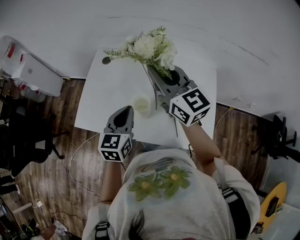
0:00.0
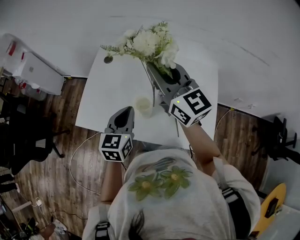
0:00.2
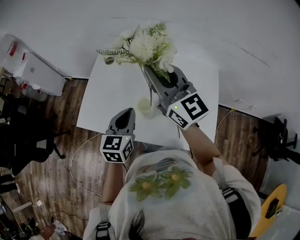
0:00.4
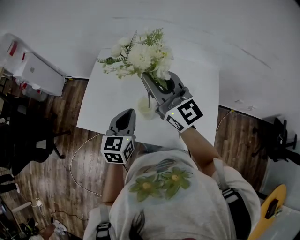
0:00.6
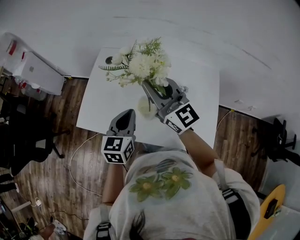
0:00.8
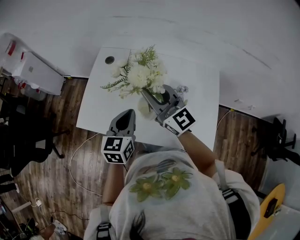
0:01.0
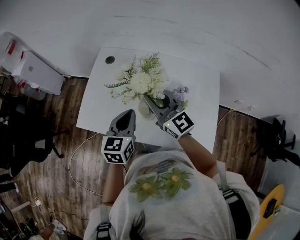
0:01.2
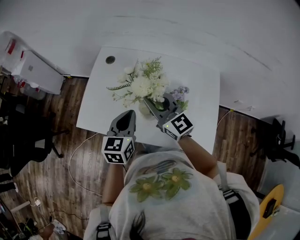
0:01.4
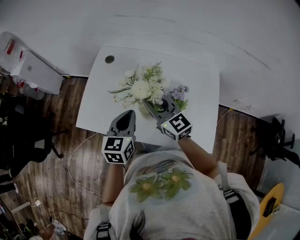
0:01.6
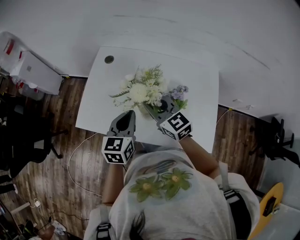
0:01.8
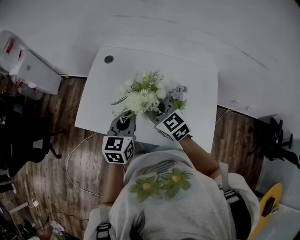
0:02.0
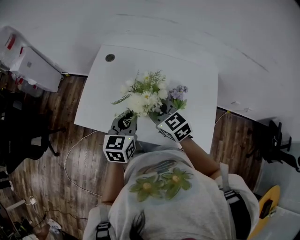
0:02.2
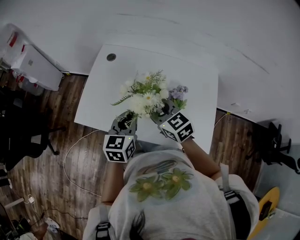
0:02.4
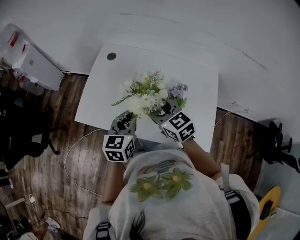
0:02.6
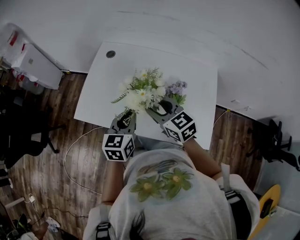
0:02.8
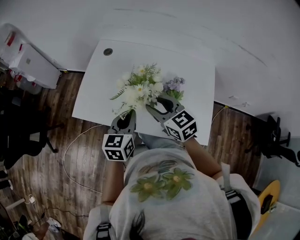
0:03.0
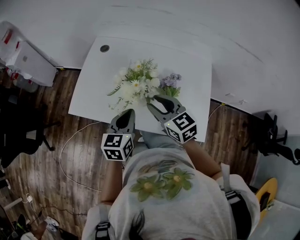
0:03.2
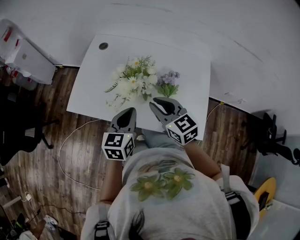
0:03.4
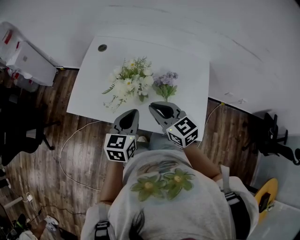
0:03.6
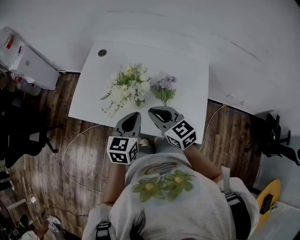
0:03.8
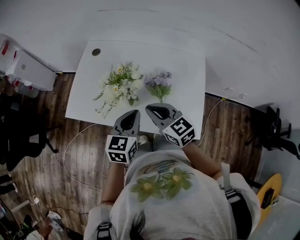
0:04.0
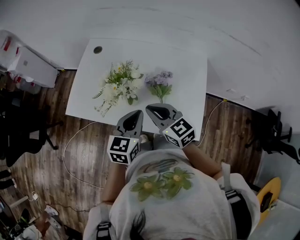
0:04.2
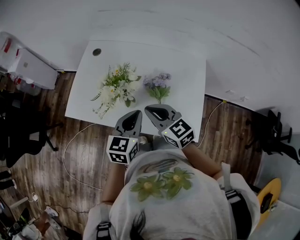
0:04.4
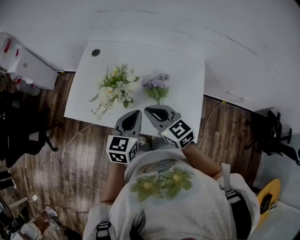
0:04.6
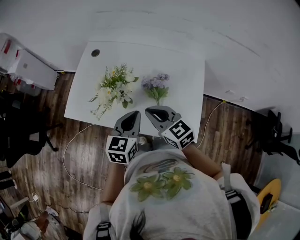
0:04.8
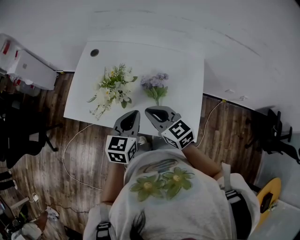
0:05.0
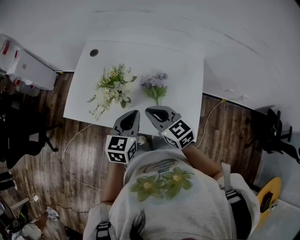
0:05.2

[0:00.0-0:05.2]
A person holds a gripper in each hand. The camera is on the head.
0:00.0 to 0:01.8: The right gripper goes about 15 cm downward and to the left.
0:01.8 to 0:03.4: Both grippers move backward, roughly 10 cm.
0:03.4 to 0:05.2: The right gripper shifts some 5 cm to the right. The left gripper heads to the right, covering roughly 10 cm.

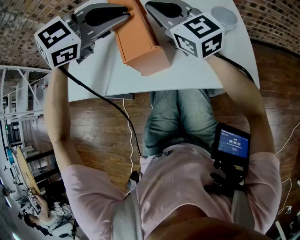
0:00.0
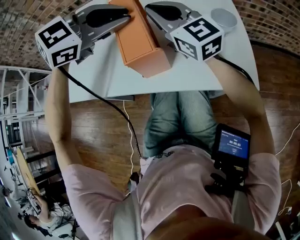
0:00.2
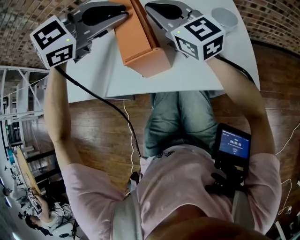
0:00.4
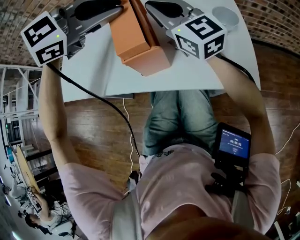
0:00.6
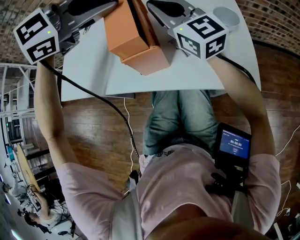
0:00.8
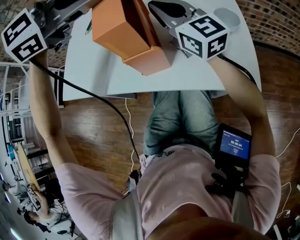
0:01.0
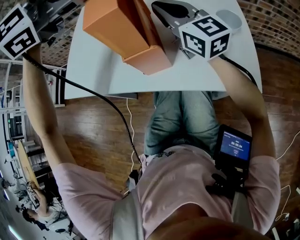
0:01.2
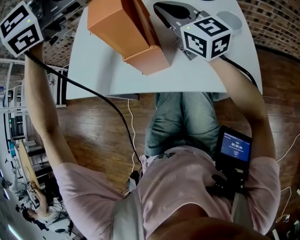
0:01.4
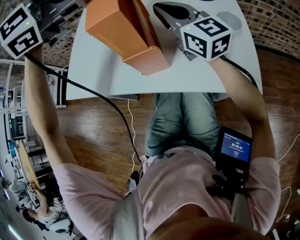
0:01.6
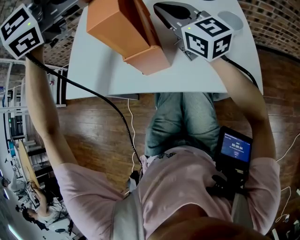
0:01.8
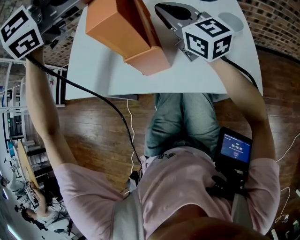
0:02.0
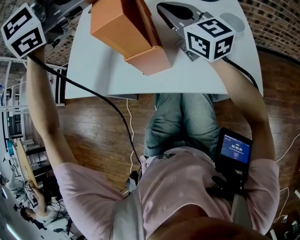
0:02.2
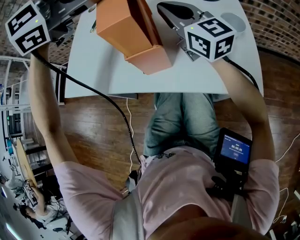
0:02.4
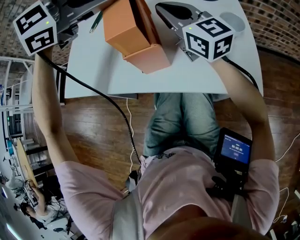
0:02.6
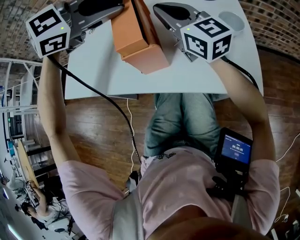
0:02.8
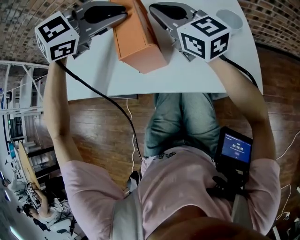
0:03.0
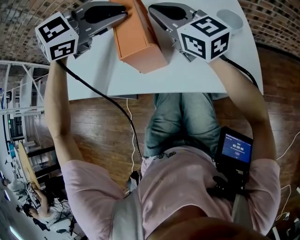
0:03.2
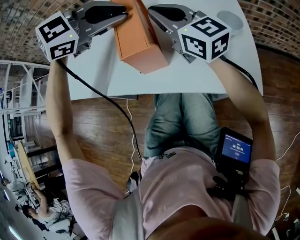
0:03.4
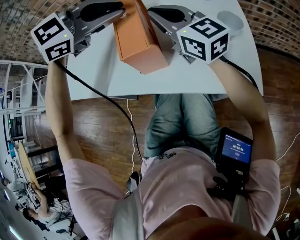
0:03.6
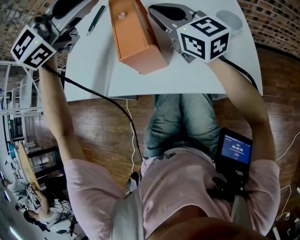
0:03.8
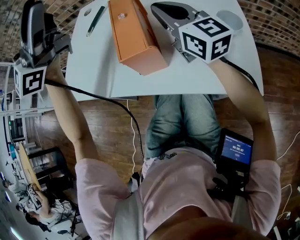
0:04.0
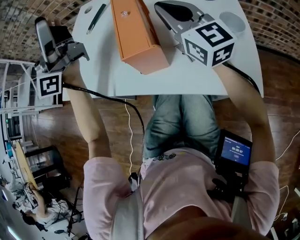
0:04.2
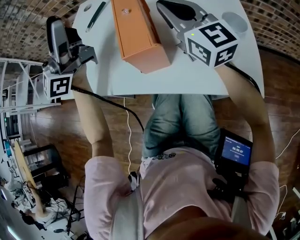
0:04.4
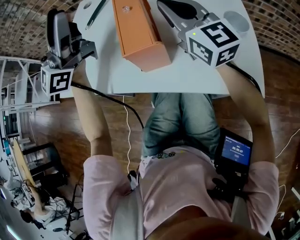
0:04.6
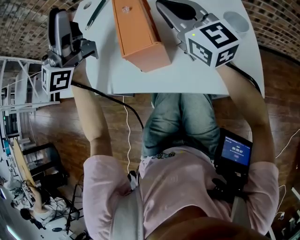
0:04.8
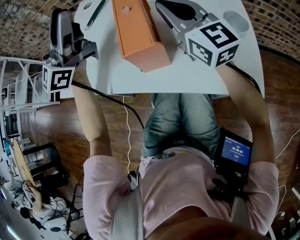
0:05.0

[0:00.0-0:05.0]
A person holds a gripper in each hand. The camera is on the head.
0:00.0 to 0:01.6: The left gripper is displaced upward by some 10 cm.
0:01.6 to 0:03.4: The left gripper moves downward, some 10 cm.
0:03.4 to 0:05.0: The left gripper is displaced to the left and upward by about 15 cm, tilts its fingers some 70 degrees upward, and opens.

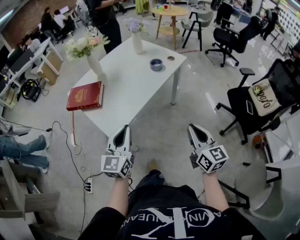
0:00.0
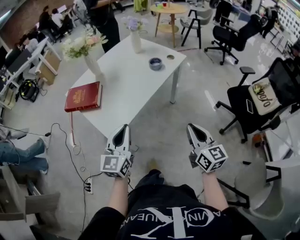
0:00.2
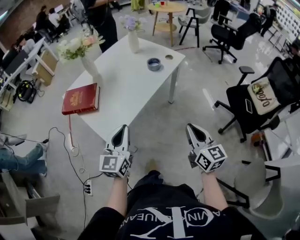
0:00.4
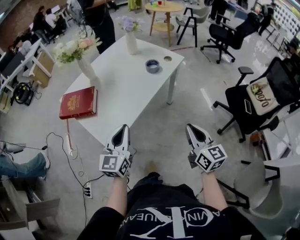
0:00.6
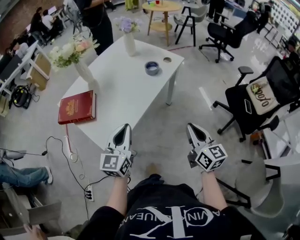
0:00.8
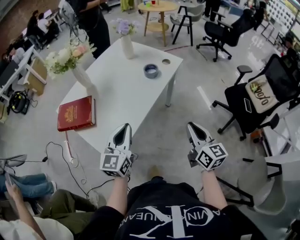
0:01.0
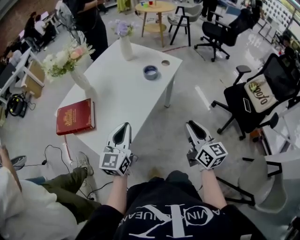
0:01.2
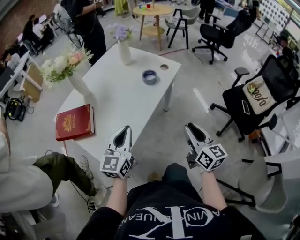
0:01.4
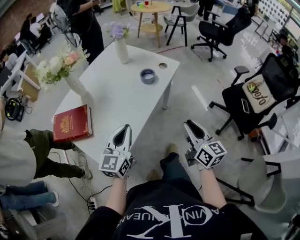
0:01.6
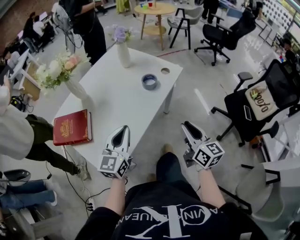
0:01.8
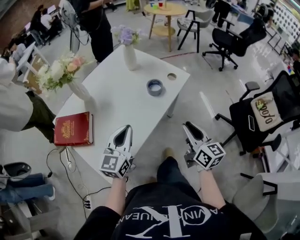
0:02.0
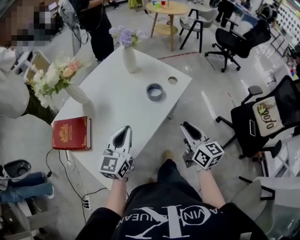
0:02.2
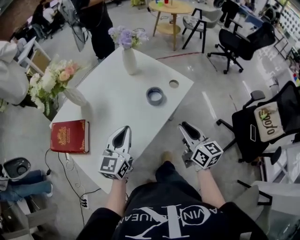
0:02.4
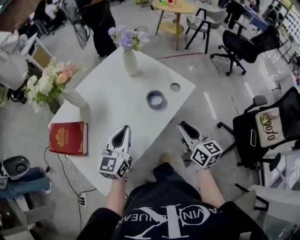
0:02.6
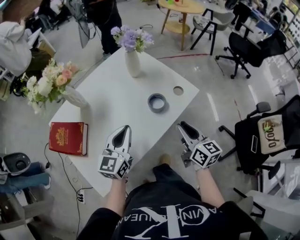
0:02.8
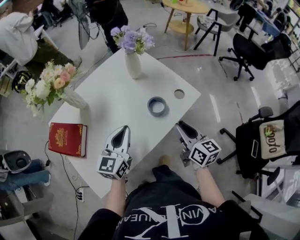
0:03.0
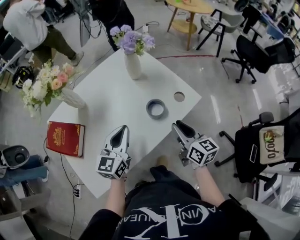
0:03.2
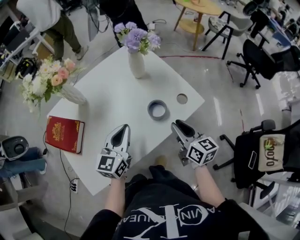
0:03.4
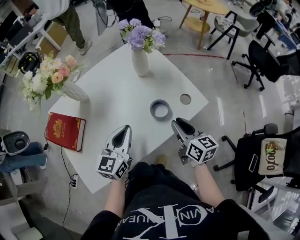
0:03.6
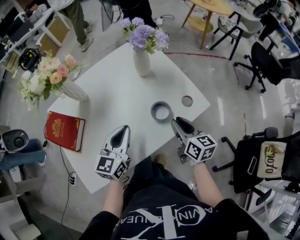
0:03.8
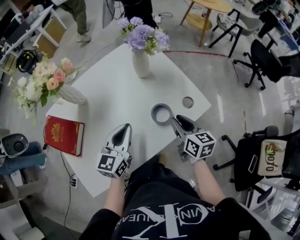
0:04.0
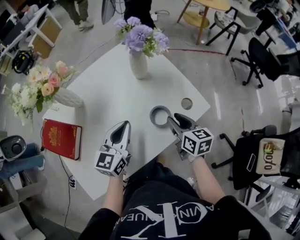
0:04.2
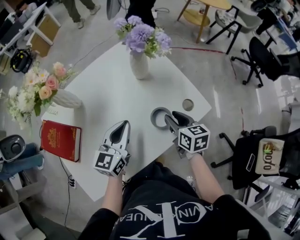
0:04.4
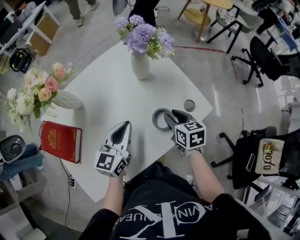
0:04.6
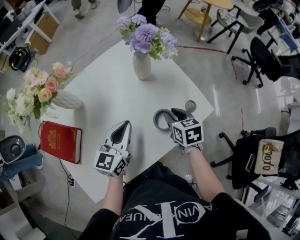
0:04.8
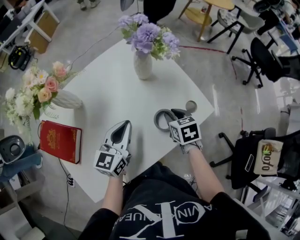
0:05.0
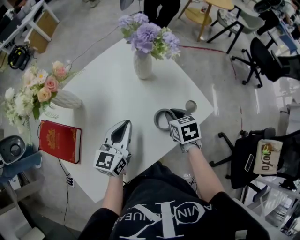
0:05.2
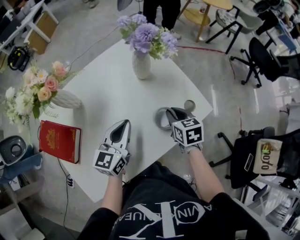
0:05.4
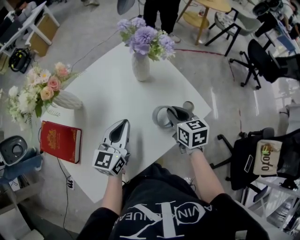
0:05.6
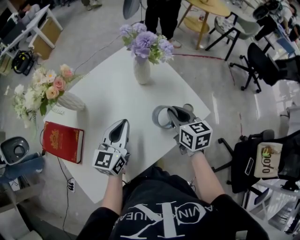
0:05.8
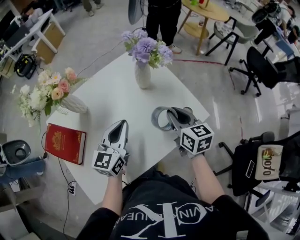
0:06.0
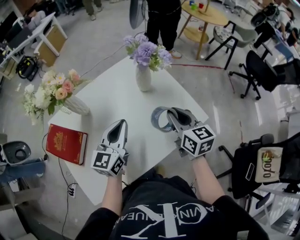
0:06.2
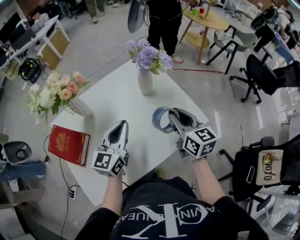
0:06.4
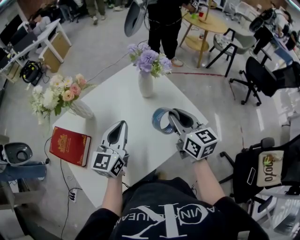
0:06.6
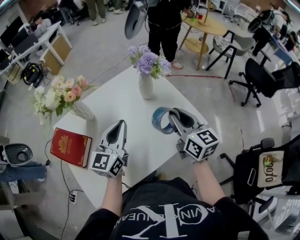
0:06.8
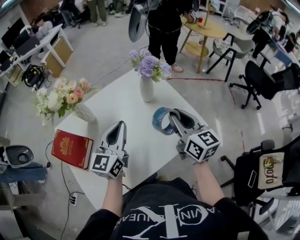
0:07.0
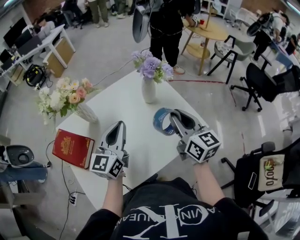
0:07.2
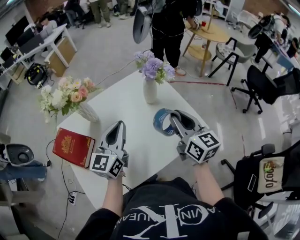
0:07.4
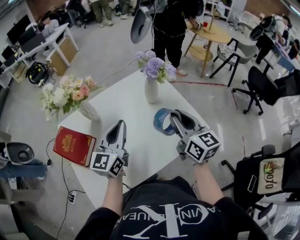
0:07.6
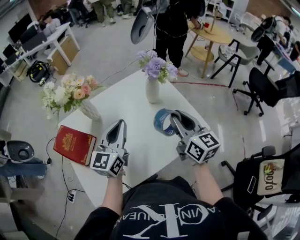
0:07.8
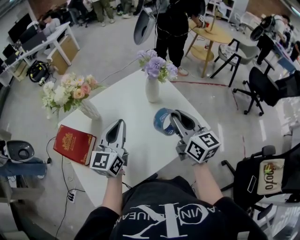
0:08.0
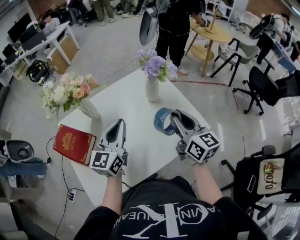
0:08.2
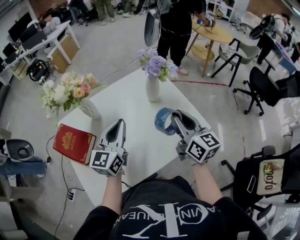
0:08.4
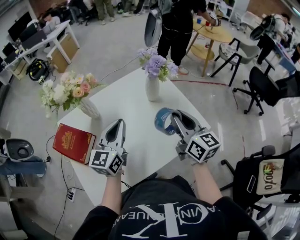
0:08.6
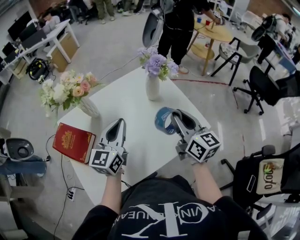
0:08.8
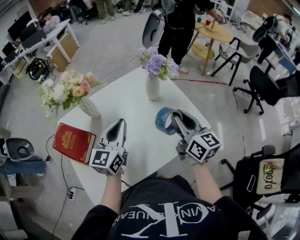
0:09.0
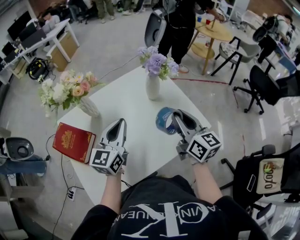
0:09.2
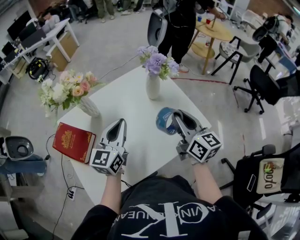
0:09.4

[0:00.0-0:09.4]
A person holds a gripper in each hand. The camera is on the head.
0:00.0 to 0:01.6: Both grippers travel together forward, approximately 15 cm. The right gripper opens its fingers.
0:01.6 to 0:03.2: The grippers both shift forward by about 25 cm. The right gripper swivels some 30 degrees.
0:03.2 to 0:04.8: The left gripper is displaced forward by some 10 cm. The right gripper shifts about 15 cm forward and downward, and angles its fingers downward, by approximately 30 degrees.
0:04.8 to 0:06.2: The left gripper moves upward, roughly 5 cm, while the right gripper is displaced upward by some 15 cm, and turns by some 30 degrees.
0:06.2 to 0:07.8: Both grippers move upward, some 5 cm.
0:07.8 to 0:09.4: The grippers make only small movements.

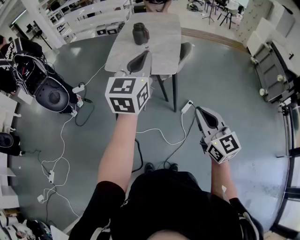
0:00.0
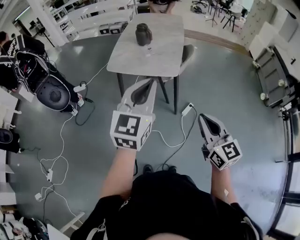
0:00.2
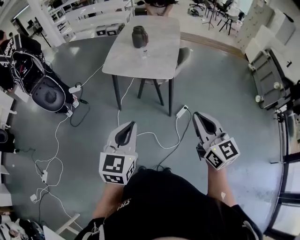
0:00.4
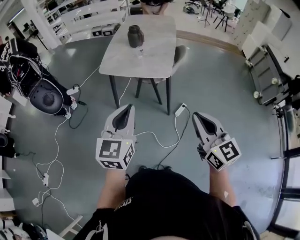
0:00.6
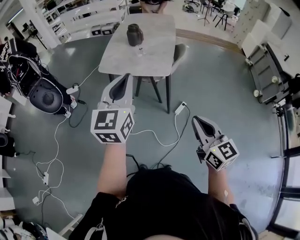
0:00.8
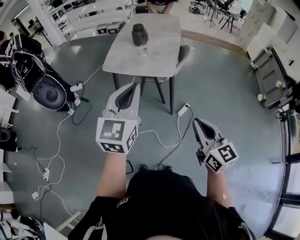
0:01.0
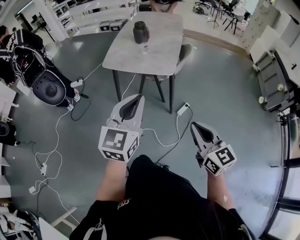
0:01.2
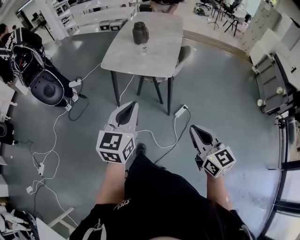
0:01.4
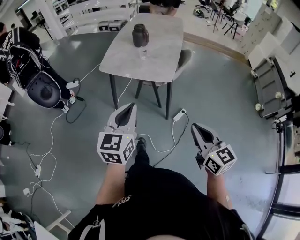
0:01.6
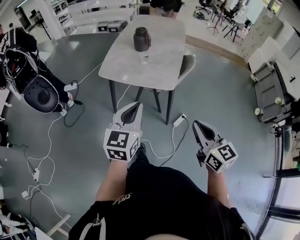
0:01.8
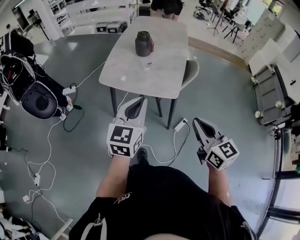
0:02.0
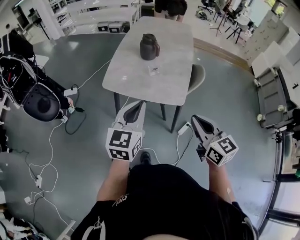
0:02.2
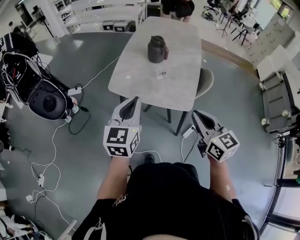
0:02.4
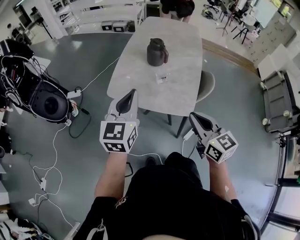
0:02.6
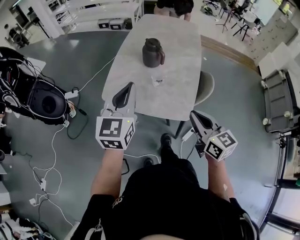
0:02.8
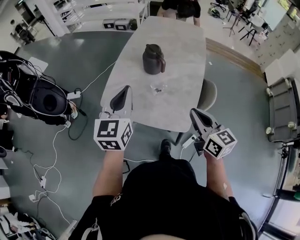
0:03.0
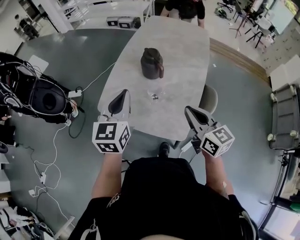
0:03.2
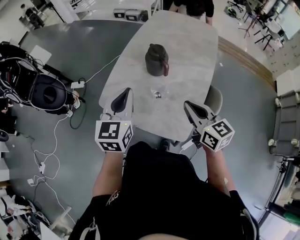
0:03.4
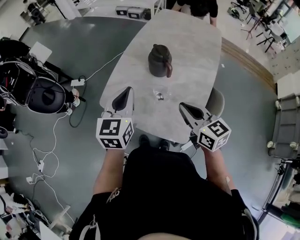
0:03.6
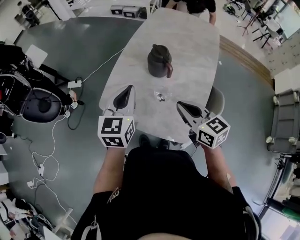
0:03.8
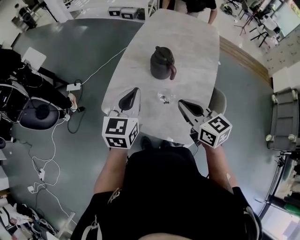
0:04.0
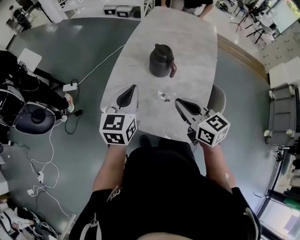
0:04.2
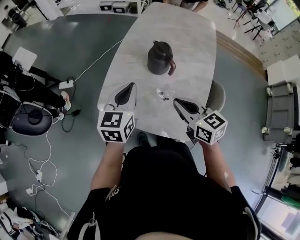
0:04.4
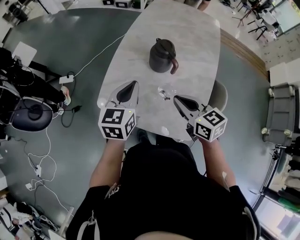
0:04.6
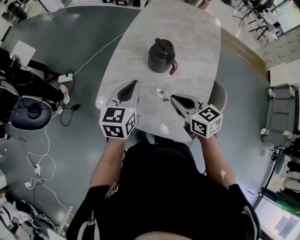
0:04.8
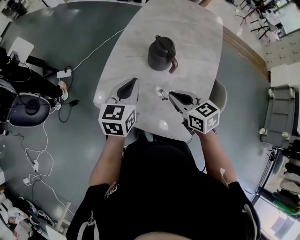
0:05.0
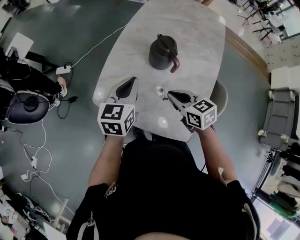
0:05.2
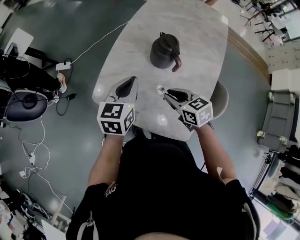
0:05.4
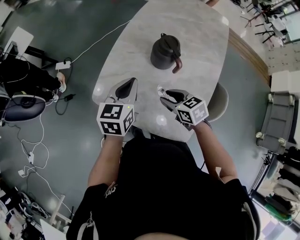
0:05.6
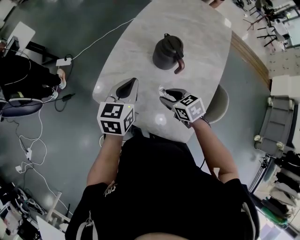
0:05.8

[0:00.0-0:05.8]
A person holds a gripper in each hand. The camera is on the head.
0:00.0 to 0:01.4: The left gripper moves forward and backward over roughly 15 cm, changing direction 2 times, while the right gripper moves roughly 5 cm.
0:01.4 to 0:02.8: Both grippers are carried forward, approximately 40 cm.
0:02.8 to 0:04.4: The right gripper travels forward by roughly 20 cm; the left gripper heads forward and downward, covering some 20 cm.
0:04.4 to 0:05.8: The right gripper goes some 20 cm downward and forward, swivels approximately 30 degrees, and opens its fingers, while the left gripper shifts about 5 cm downward.
